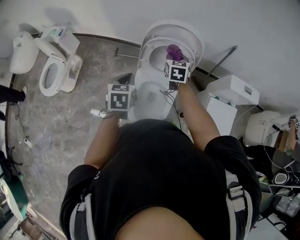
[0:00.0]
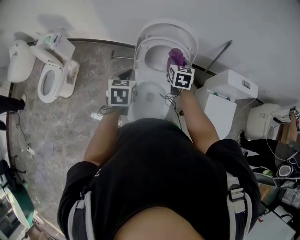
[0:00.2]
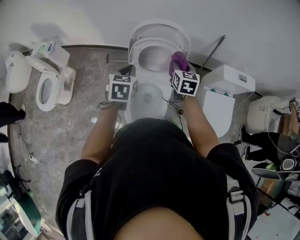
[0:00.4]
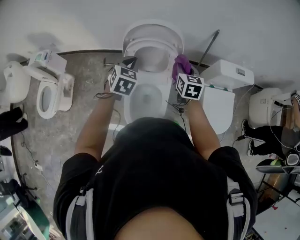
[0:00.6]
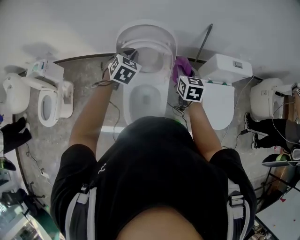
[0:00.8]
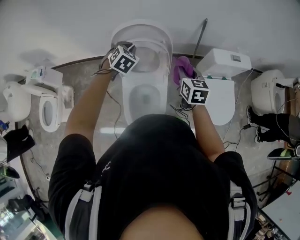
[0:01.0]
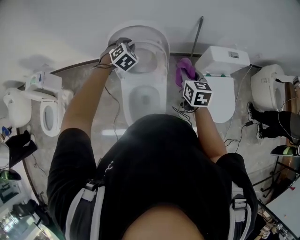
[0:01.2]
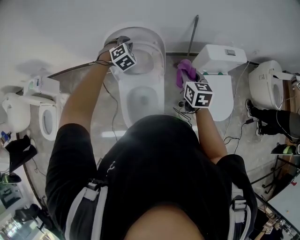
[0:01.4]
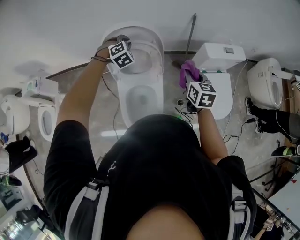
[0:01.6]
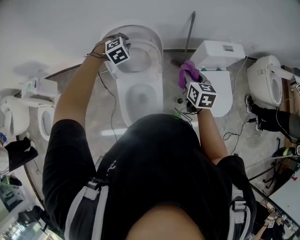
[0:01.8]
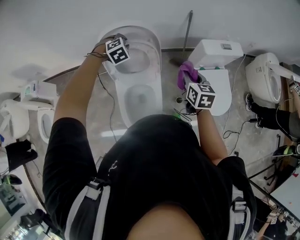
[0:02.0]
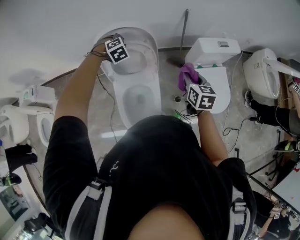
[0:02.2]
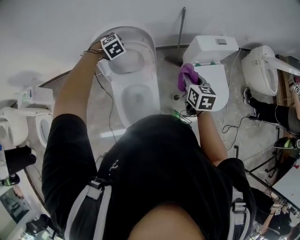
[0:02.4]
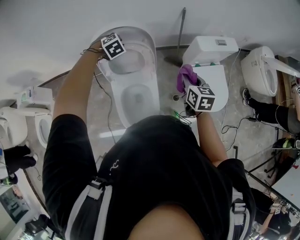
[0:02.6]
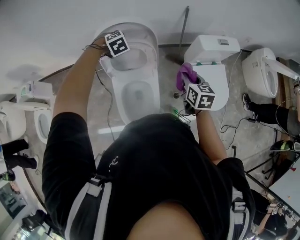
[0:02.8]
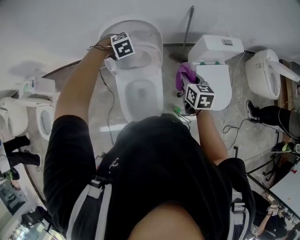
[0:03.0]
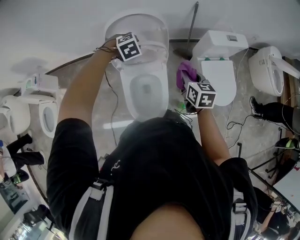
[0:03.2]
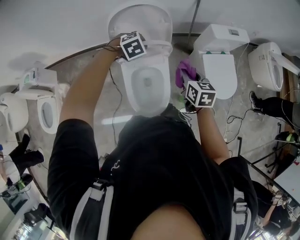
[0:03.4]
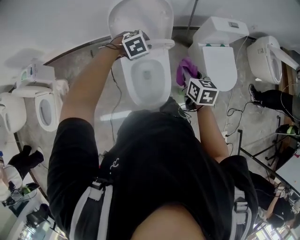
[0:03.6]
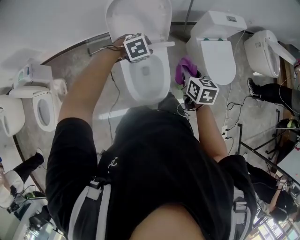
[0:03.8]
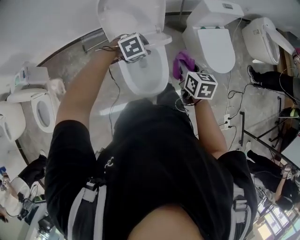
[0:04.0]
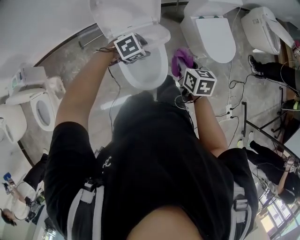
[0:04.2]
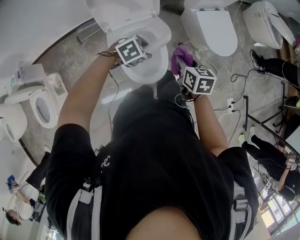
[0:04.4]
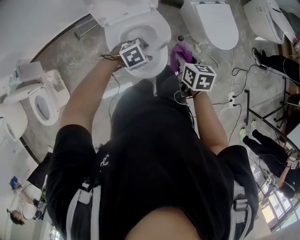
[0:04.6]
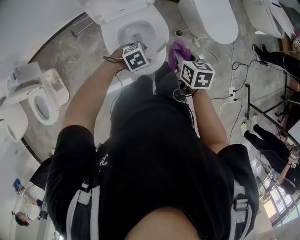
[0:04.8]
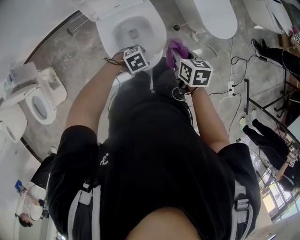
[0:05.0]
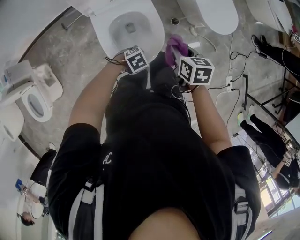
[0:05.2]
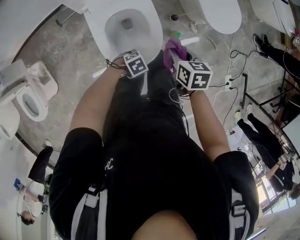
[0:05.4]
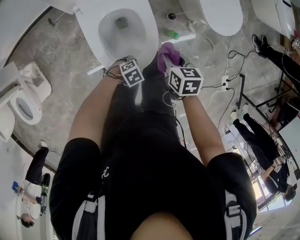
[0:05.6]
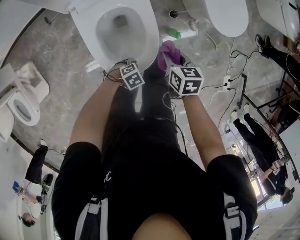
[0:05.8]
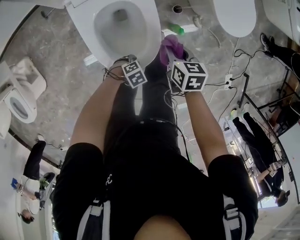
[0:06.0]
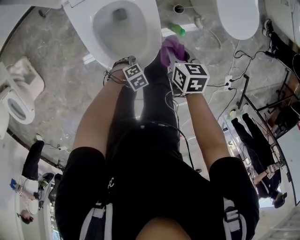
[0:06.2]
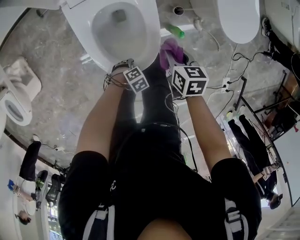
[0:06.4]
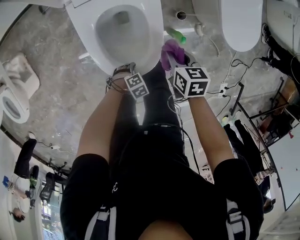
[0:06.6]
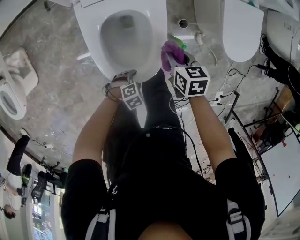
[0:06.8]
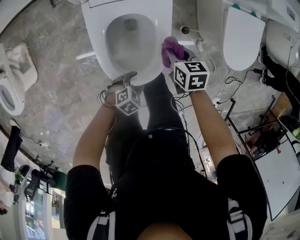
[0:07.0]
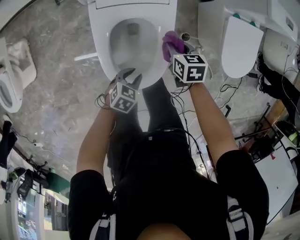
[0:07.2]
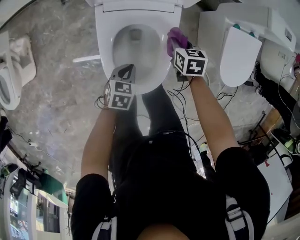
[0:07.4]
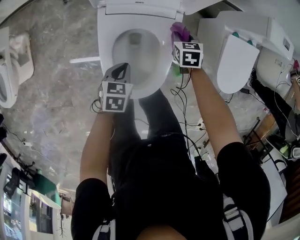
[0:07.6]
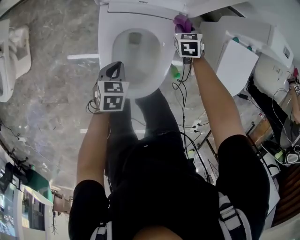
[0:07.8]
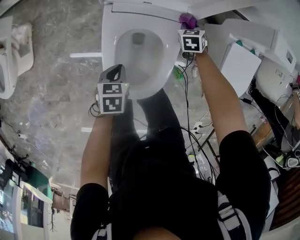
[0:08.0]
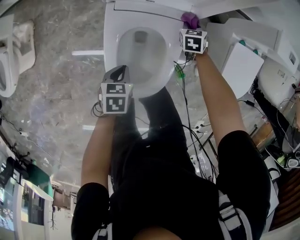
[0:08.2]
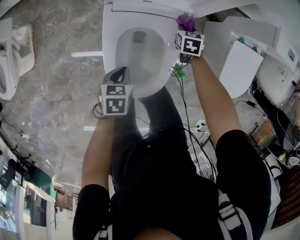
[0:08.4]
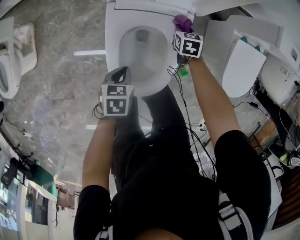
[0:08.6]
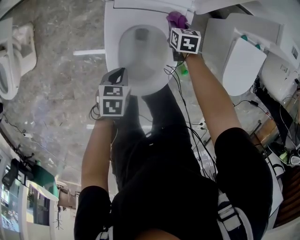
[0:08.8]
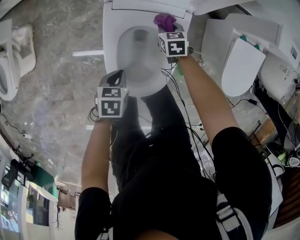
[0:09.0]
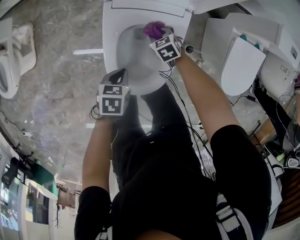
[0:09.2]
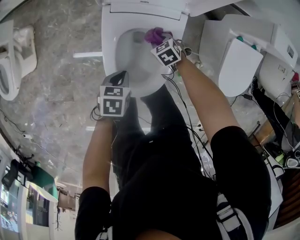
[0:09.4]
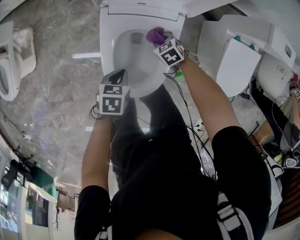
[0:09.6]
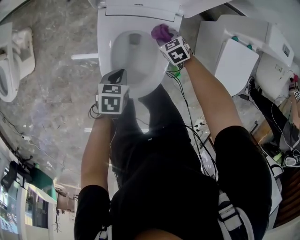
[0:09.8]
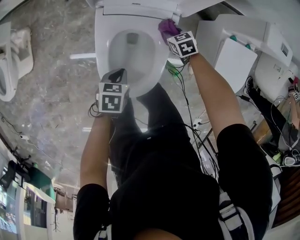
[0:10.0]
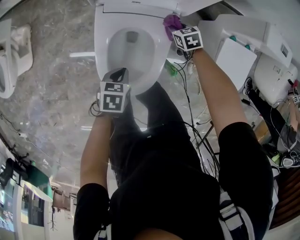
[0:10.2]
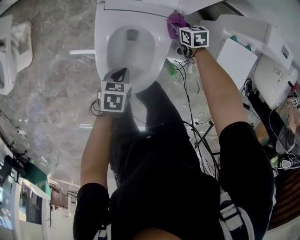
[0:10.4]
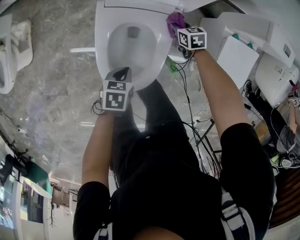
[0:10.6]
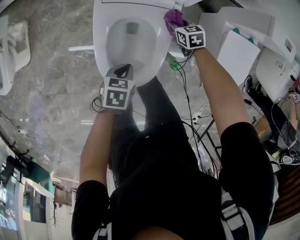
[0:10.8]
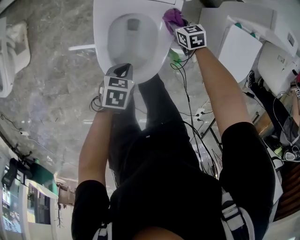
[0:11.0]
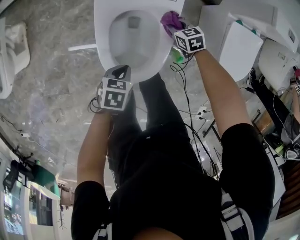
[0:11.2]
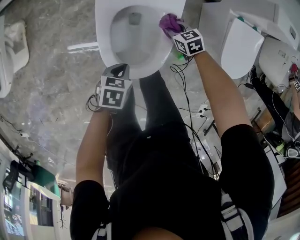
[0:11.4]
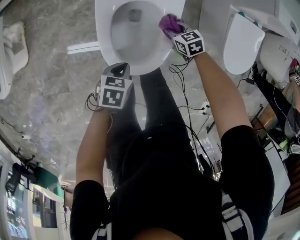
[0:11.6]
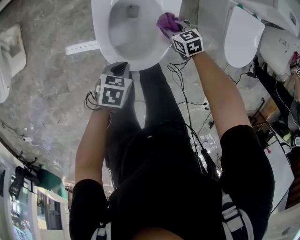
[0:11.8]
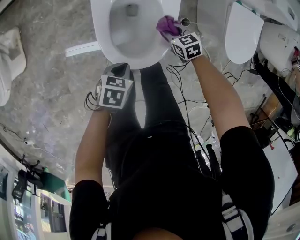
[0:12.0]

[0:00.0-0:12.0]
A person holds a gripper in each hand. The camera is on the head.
0:00.0 to 0:01.6: The left gripper moves forward and to the right, roughly 30 cm, and twists approximately 80 degrees clockwise, seen from behind; the right gripper goes about 30 cm to the right and backward, and rotates about 20 degrees.
0:01.6 to 0:03.0: The left gripper changes place by some 5 cm, and swivels some 20 degrees; the right gripper moves some 5 cm.
0:03.0 to 0:04.4: The right gripper moves roughly 25 cm. Meanwhile the left gripper moves roughly 35 cm, rotates approximately 30 degrees, and opens up.
0:04.4 to 0:06.0: Both grippers move downward, approximately 30 cm. The left gripper turns by some 20 degrees.
0:06.0 to 0:07.6: The right gripper moves roughly 30 cm, and swivels about 30 degrees; the left gripper moves roughly 25 cm, changes its angle by about 80 degrees, and closes.
0:07.6 to 0:09.0: The right gripper moves to the left and downward, approximately 10 cm.
0:09.0 to 0:10.4: Both grippers travel together to the right, approximately 10 cm.
0:10.4 to 0:12.0: The right gripper moves backward, approximately 25 cm. Meanwhile the left gripper moves backward, about 15 cm.

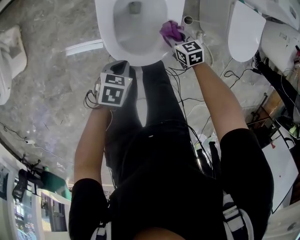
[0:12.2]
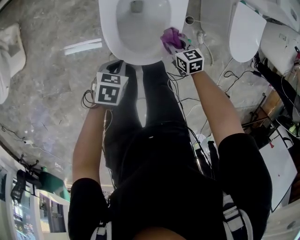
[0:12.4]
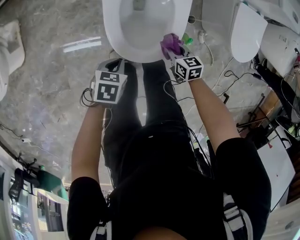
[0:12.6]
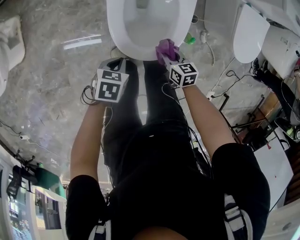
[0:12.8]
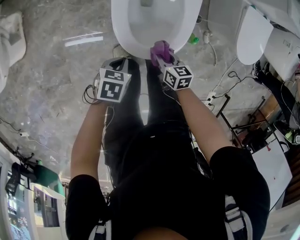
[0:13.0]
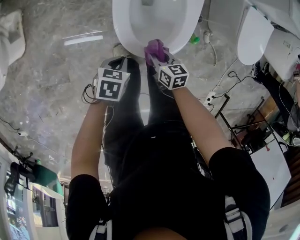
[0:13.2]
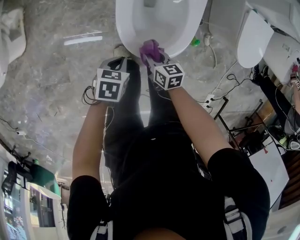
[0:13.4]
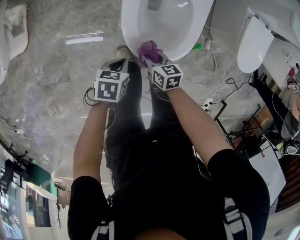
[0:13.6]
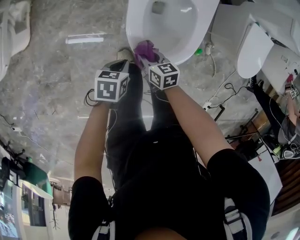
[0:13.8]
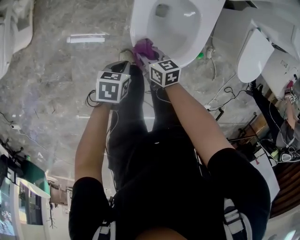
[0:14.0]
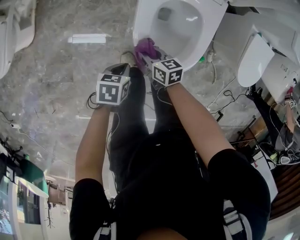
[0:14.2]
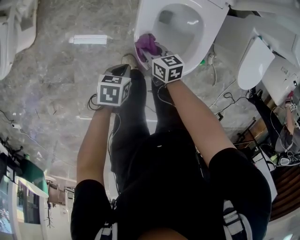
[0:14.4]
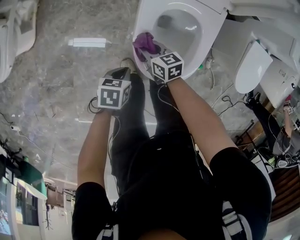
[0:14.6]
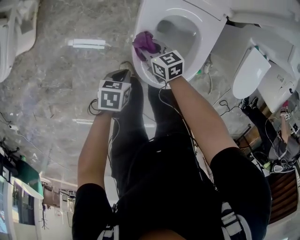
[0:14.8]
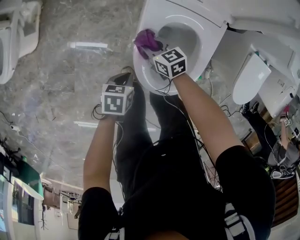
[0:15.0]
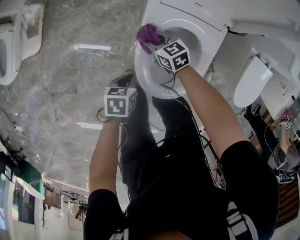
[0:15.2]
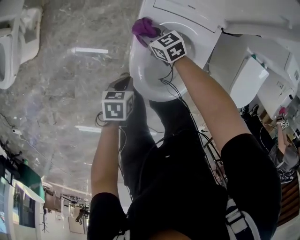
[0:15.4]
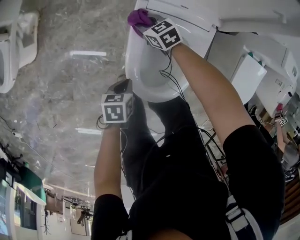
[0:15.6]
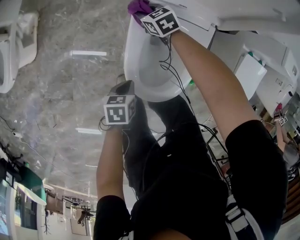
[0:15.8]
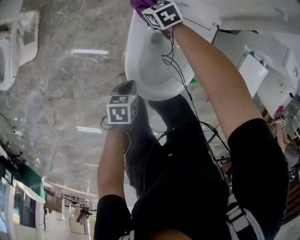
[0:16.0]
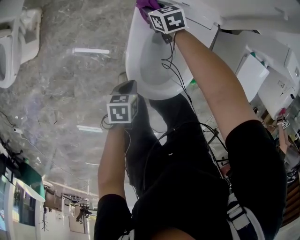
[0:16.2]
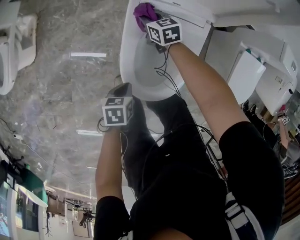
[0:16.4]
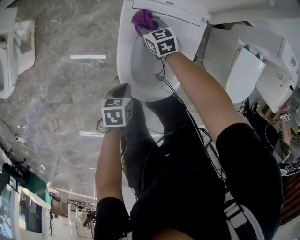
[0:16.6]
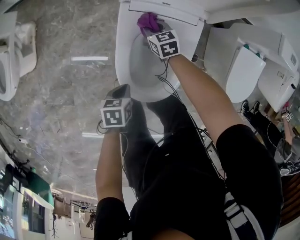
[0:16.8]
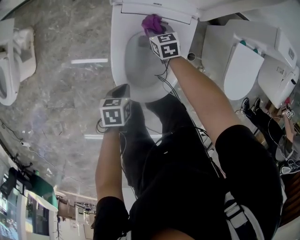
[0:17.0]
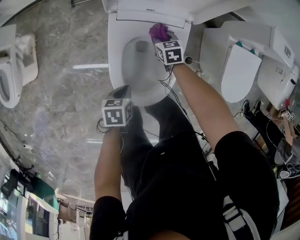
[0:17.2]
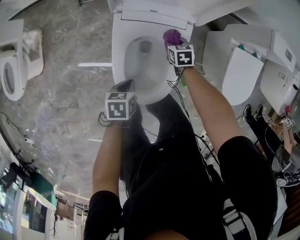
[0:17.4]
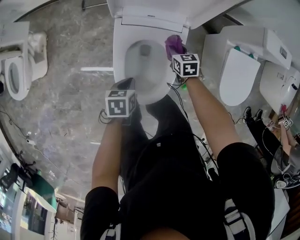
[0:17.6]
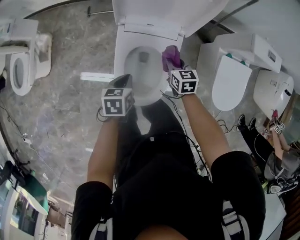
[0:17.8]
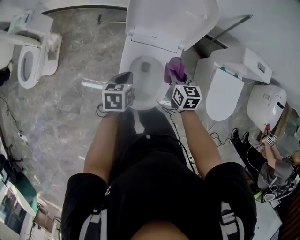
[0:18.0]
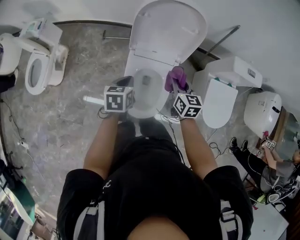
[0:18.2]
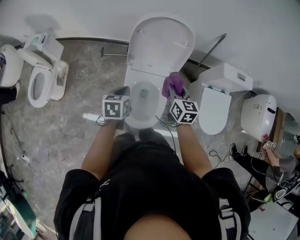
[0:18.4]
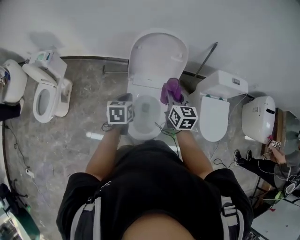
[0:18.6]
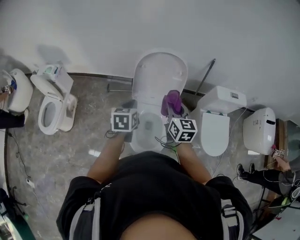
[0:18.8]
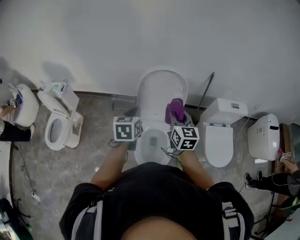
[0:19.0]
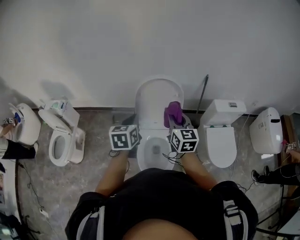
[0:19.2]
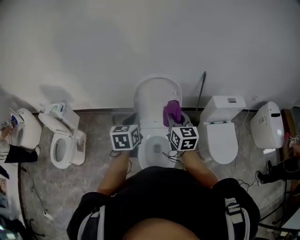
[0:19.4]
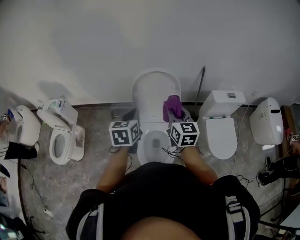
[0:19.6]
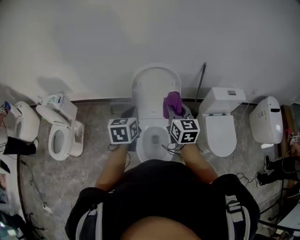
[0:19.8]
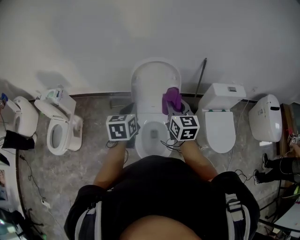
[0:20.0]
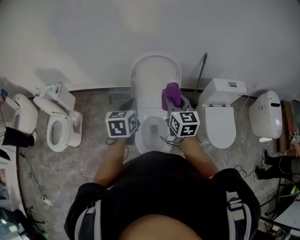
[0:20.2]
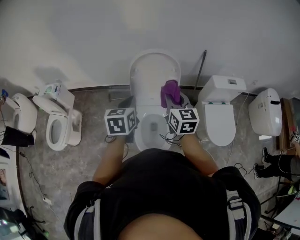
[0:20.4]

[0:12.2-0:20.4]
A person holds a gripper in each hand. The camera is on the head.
0:12.2 to 0:13.8: The left gripper heads to the left, covering roughly 10 cm. Meanwhile the right gripper travels to the left and backward by approximately 25 cm.
0:13.8 to 0:15.4: The left gripper changes place by about 10 cm. Meanwhile the right gripper changes place by some 30 cm, and turns by about 30 degrees.
0:15.4 to 0:17.2: The left gripper shifts approximately 10 cm to the right. Meanwhile the right gripper travels to the right by roughly 25 cm, and changes its angle by about 30 degrees.
0:17.2 to 0:18.8: Both grippers travel together upward, approximately 50 cm. The right gripper points its fingers some 40 degrees further upward; the left gripper changes its angle by about 40 degrees.
0:18.8 to 0:20.4: Both grippers travel together upward, approximately 5 cm.

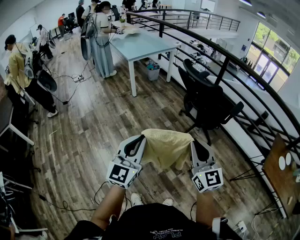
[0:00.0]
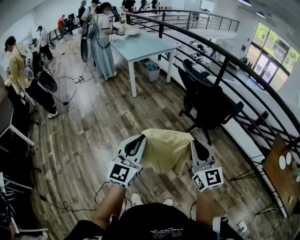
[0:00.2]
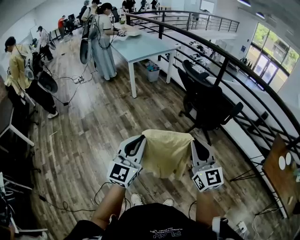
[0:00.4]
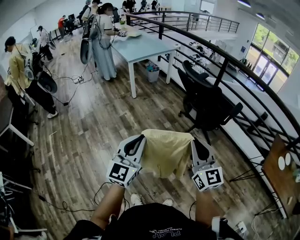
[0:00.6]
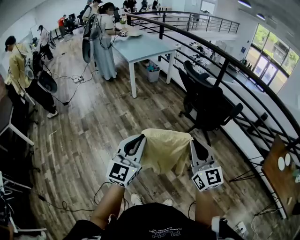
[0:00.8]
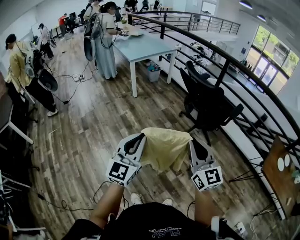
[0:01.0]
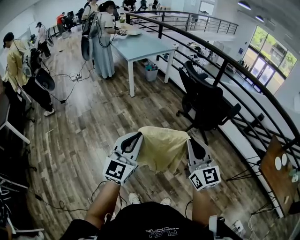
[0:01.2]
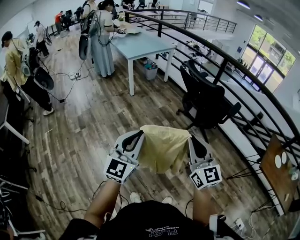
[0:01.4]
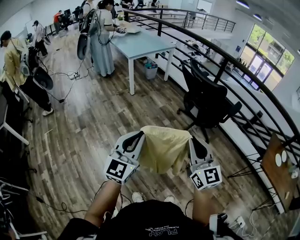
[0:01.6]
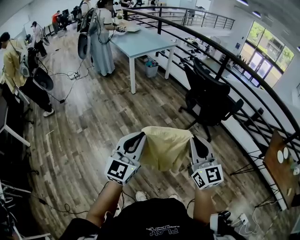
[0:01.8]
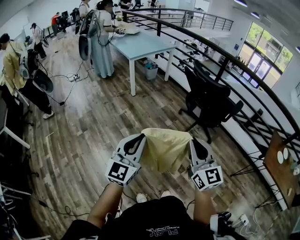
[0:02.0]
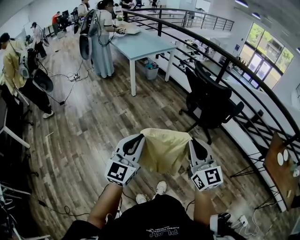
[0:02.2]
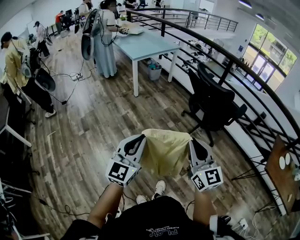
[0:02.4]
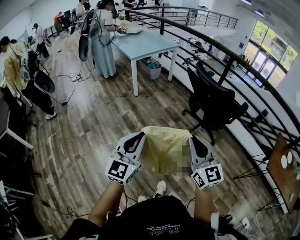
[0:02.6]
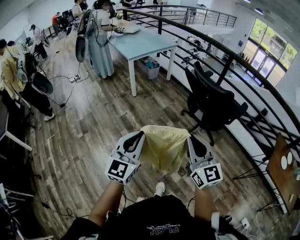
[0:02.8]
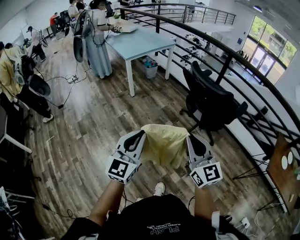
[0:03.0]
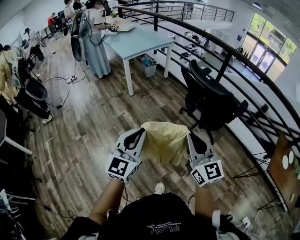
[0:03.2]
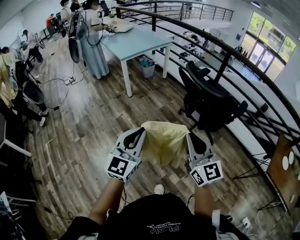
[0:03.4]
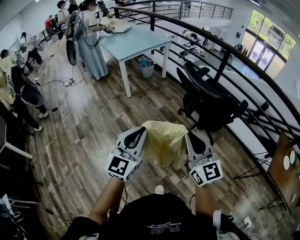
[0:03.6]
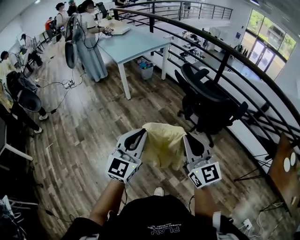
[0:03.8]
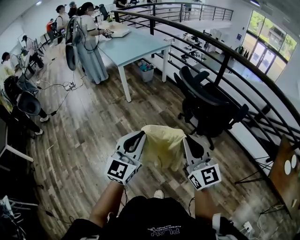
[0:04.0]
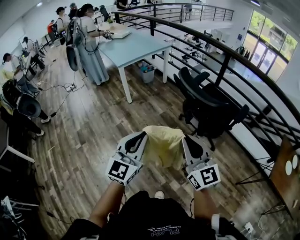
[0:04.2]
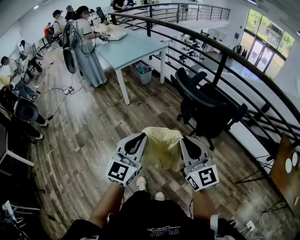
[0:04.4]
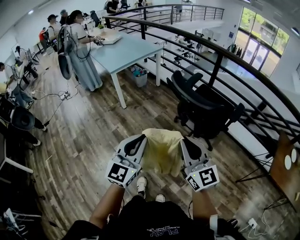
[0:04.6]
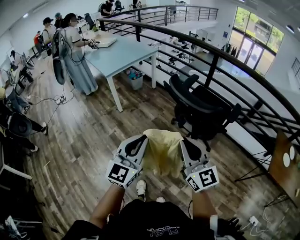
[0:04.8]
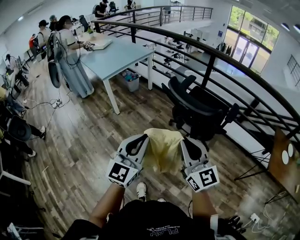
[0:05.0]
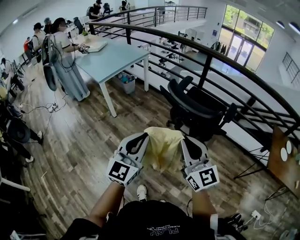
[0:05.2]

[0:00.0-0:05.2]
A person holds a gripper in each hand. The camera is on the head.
0:00.0 to 0:01.8: The two grippers go some 10 cm to the left.
0:01.8 to 0:03.4: The grippers both shift forward by approximately 15 cm.
0:03.4 to 0:05.2: The two grippers go about 15 cm forward.
